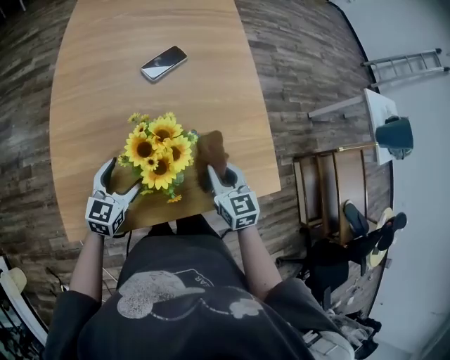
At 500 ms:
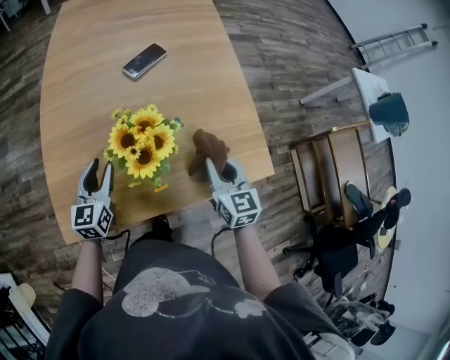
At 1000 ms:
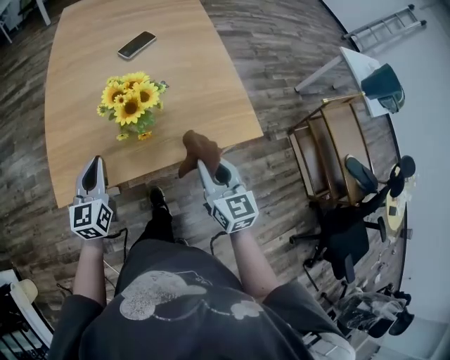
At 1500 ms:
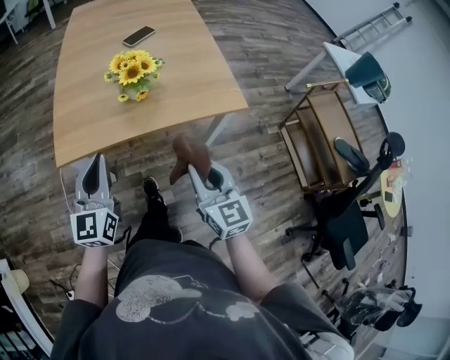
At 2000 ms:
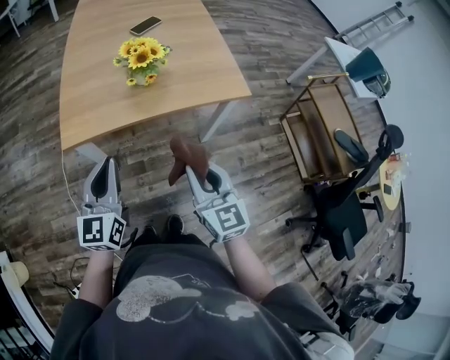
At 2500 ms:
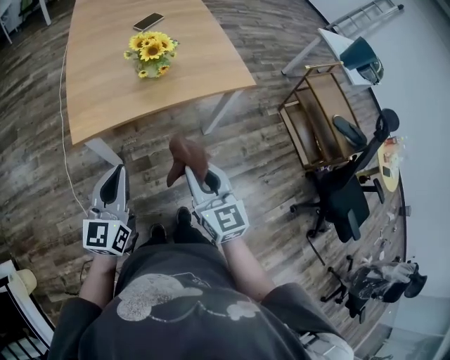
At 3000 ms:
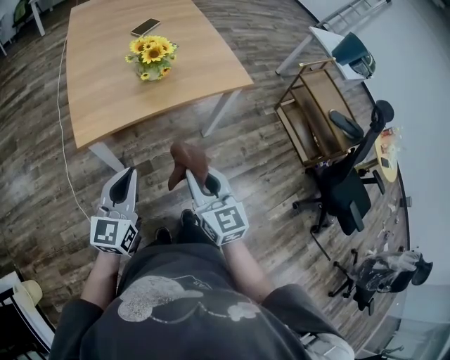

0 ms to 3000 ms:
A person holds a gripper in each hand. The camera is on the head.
0 ms to 1500 ms: The right gripper is displaced backward by roughly 30 cm; the left gripper goes approximately 35 cm backward and upward, swivels approximately 30 degrees, and closes its fingers.
1500 ms to 3000 ms: The right gripper travels to the left and backward by about 15 cm; the left gripper shifts about 10 cm backward, and changes its angle by about 20 degrees.

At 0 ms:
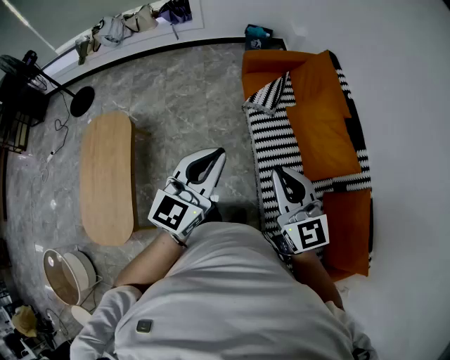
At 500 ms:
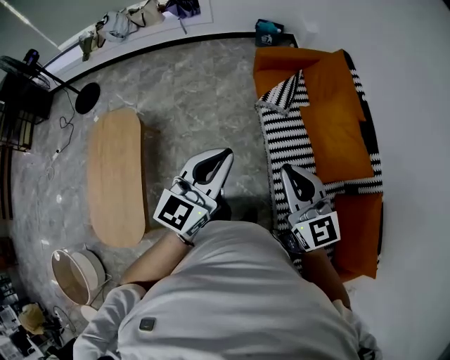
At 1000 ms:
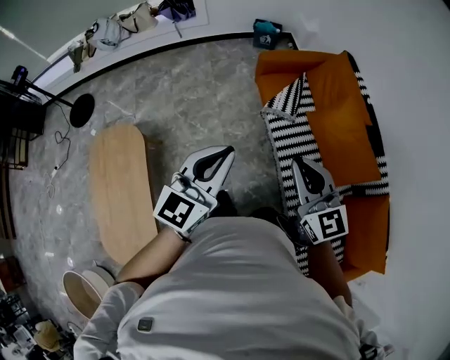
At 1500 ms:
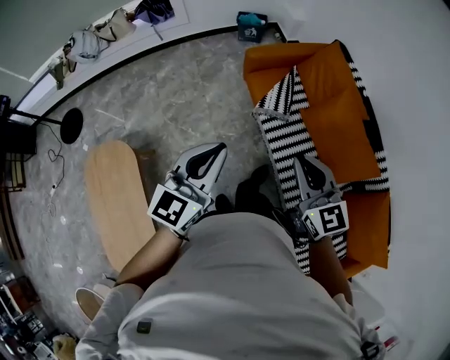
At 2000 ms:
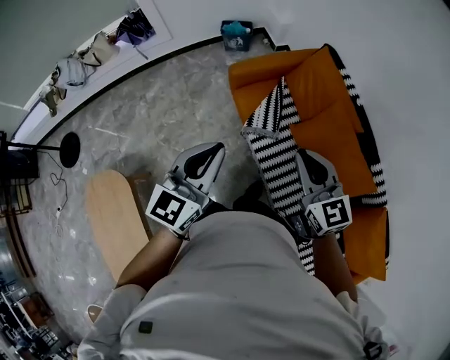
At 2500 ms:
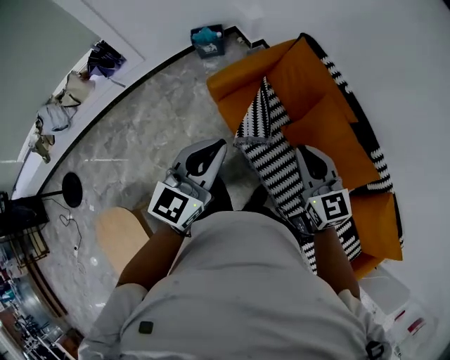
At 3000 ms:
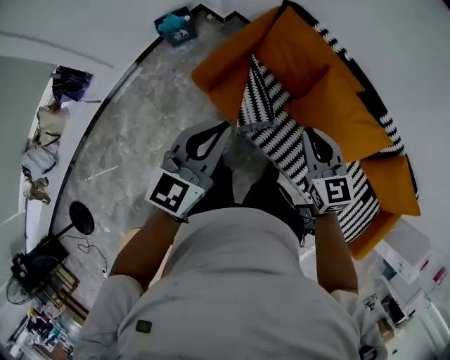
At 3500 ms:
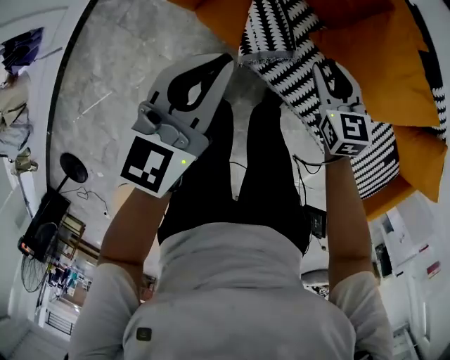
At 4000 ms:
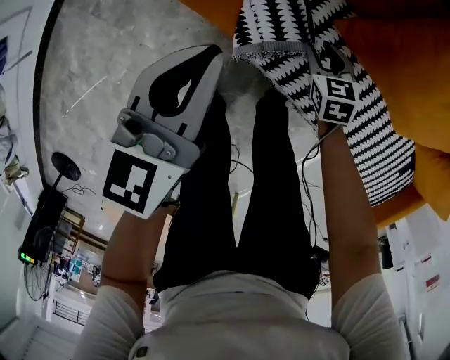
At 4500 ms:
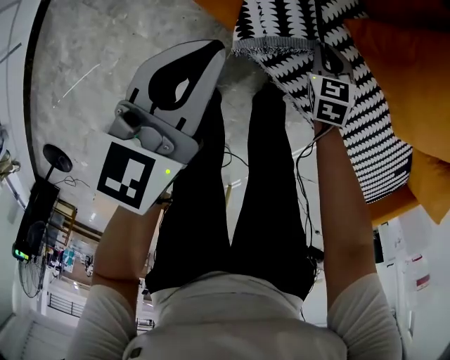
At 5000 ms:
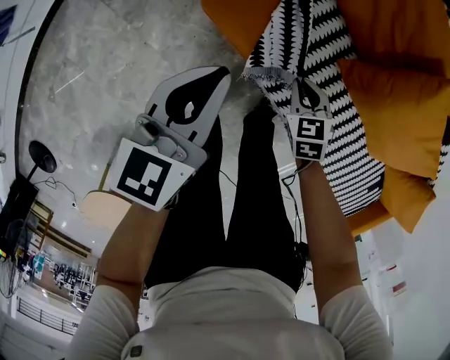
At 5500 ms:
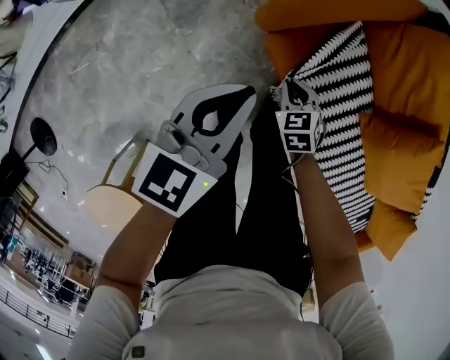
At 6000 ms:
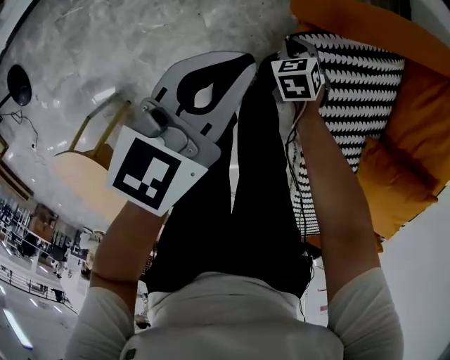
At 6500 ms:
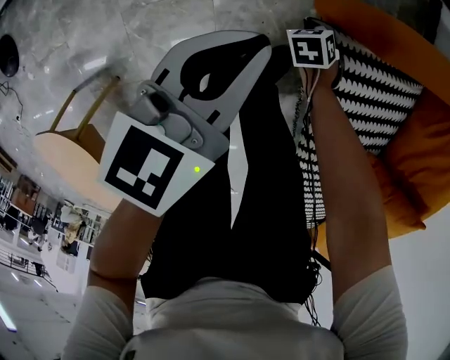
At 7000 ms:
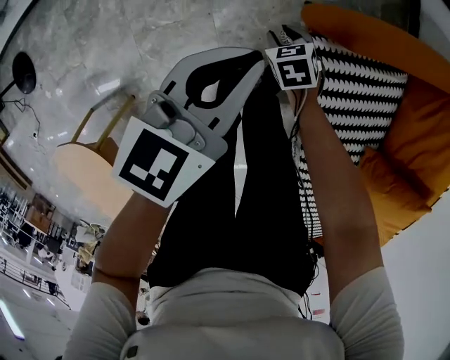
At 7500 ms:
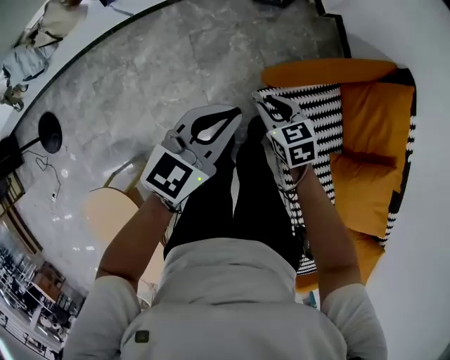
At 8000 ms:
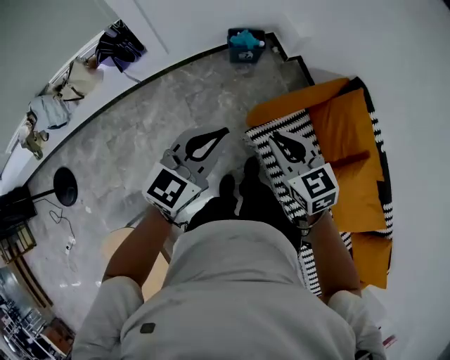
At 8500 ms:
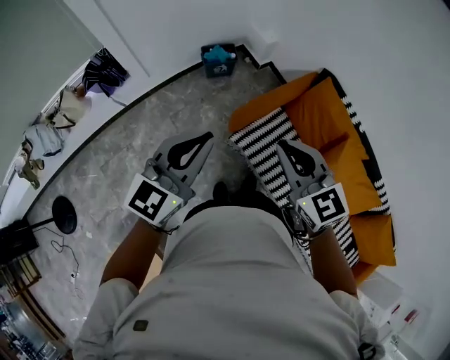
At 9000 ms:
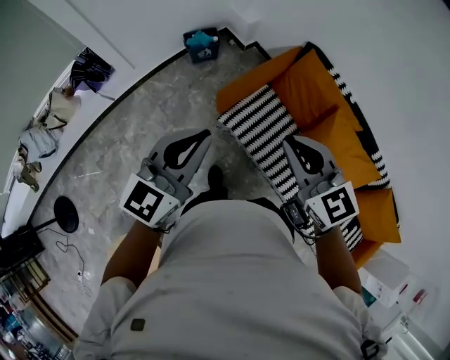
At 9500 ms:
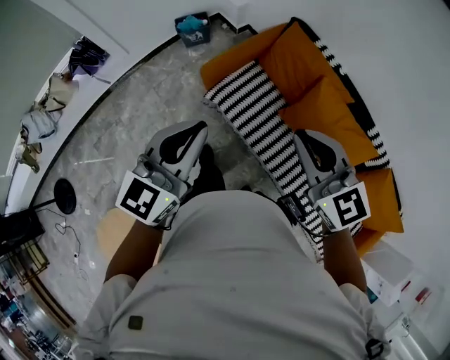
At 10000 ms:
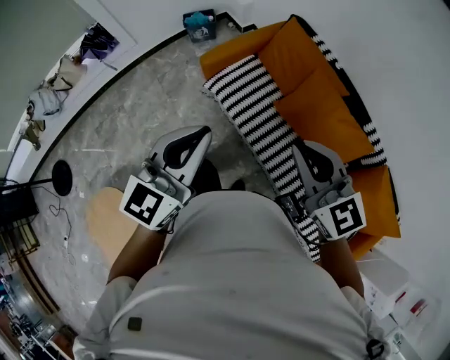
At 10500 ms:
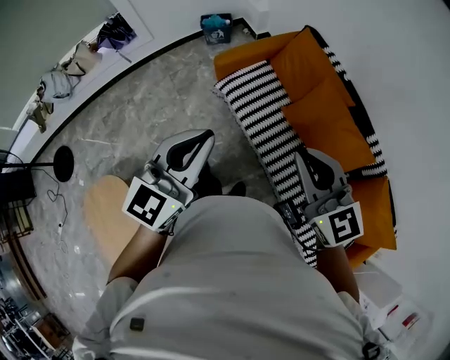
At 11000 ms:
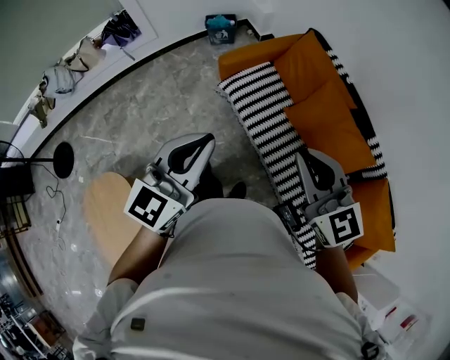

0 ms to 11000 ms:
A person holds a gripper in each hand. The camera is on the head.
0 ms to 2000 ms: The grippers both shift forward by roughly 35 cm.
2000 ms to 3500 ms: The right gripper travels downward by some 40 cm, rotates approximately 50 degrees, and opens up; the left gripper ends up about 40 cm from where it was, and rotates roughly 30 degrees.
3500 ms to 5500 ms: Both grippers move to the left and downward, roughly 30 cm. The right gripper turns by approximately 40 degrees, and closes its fingers. Meanwhile the left gripper swivels approximately 20 degrees.
5500 ms to 7500 ms: The grippers both shift upward by roughly 20 cm. The right gripper changes its angle by some 20 degrees.
7500 ms to 9000 ms: The grippers both shift upward and backward by roughly 40 cm. The left gripper rotates some 30 degrees, while the right gripper tips its fingers upward by approximately 30 degrees, and closes.
9000 ms to 11000 ms: The grippers both shift backward and to the right by approximately 35 cm.

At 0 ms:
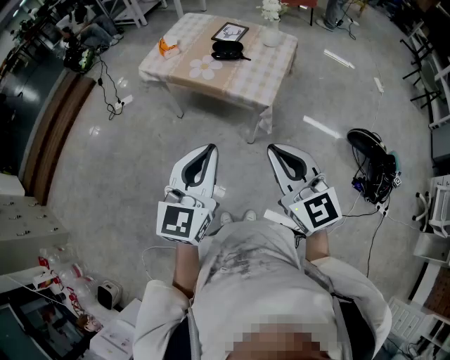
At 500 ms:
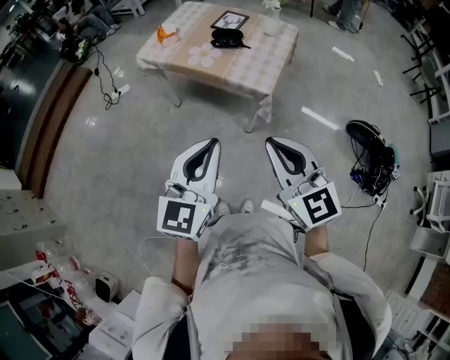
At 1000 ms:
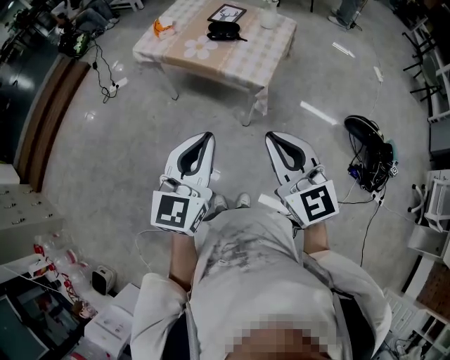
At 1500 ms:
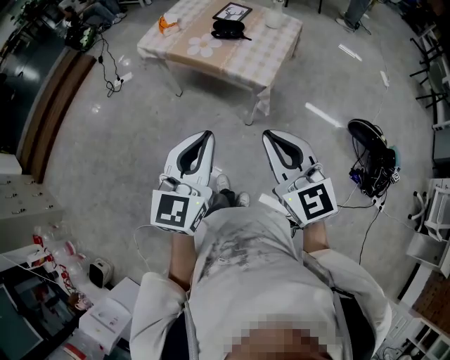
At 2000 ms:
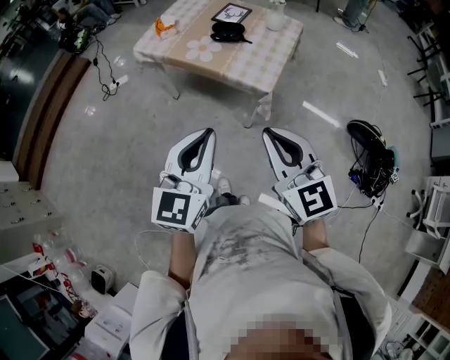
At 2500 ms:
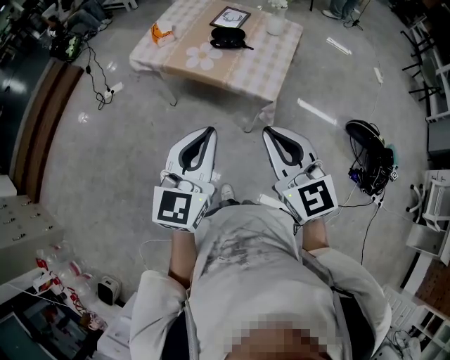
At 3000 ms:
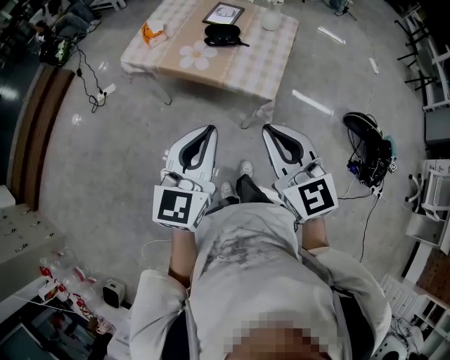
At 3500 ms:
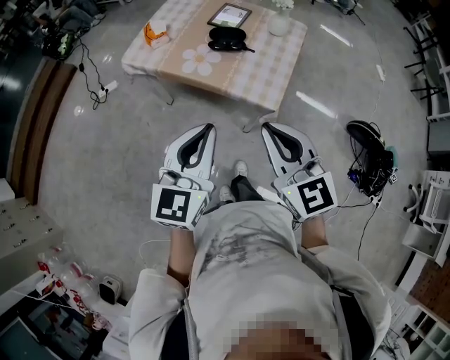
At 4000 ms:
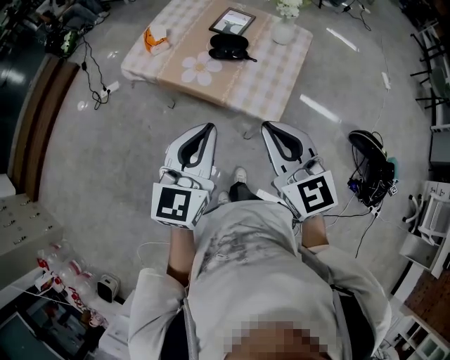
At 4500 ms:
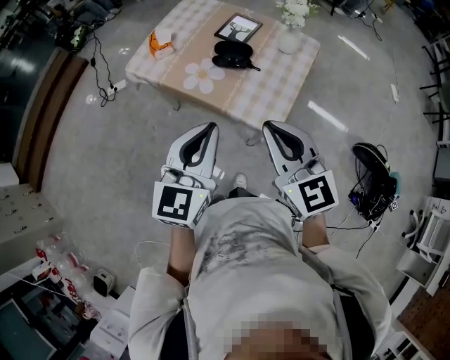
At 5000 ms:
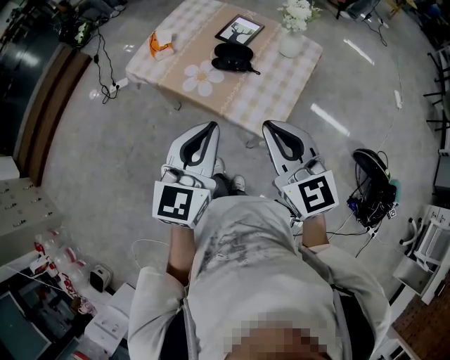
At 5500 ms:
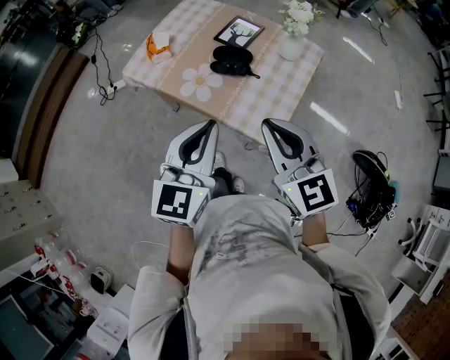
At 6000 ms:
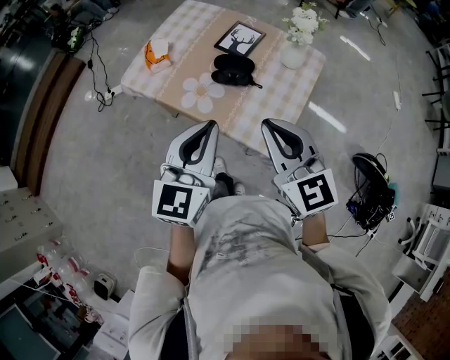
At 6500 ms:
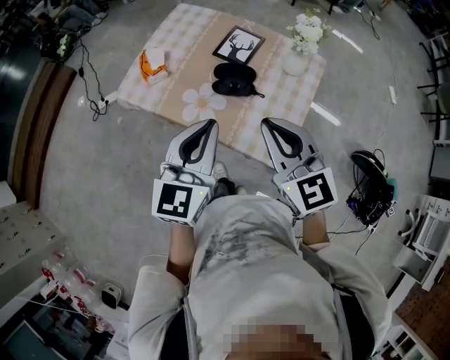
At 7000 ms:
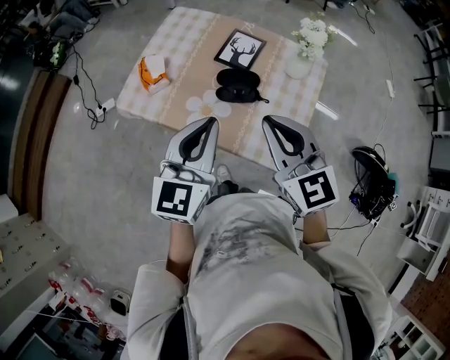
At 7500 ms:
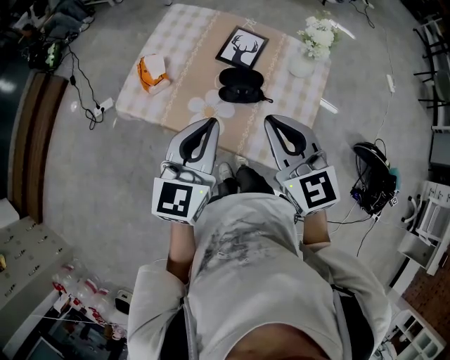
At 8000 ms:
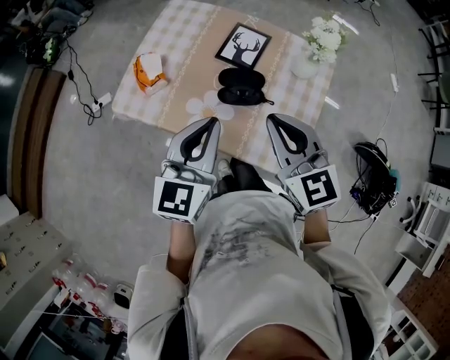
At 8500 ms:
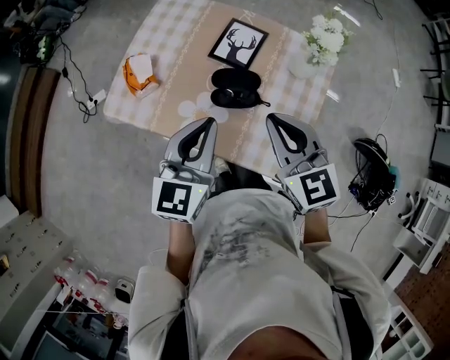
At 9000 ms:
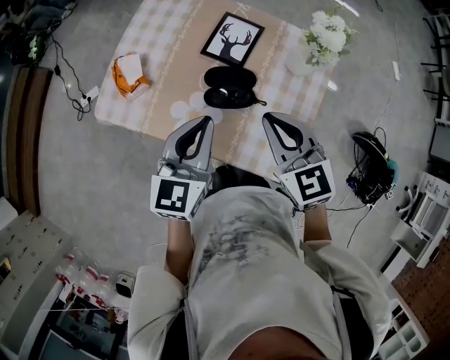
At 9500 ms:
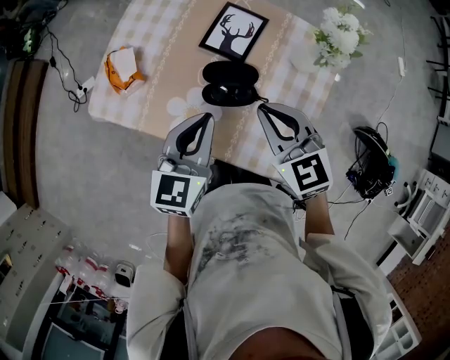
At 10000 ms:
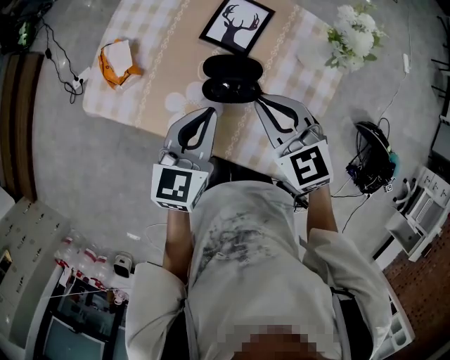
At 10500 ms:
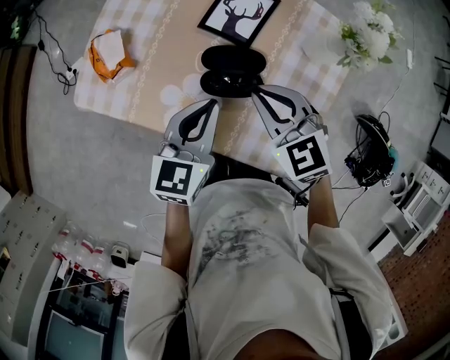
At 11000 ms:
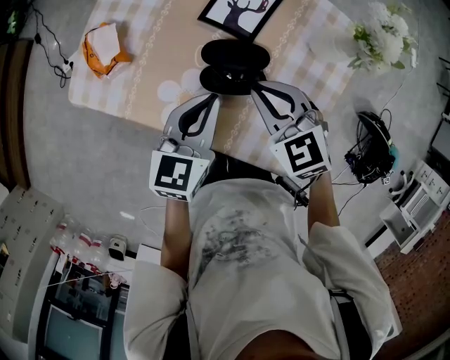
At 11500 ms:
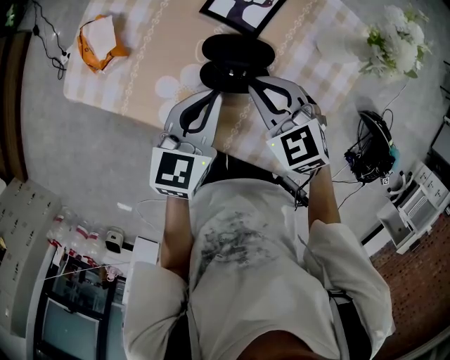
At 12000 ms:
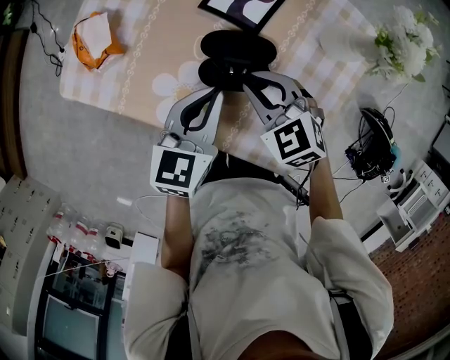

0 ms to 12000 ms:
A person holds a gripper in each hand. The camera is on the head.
0 ms to 2000 ms: There are only small adjustments of the grippers.
2000 ms to 4000 ms: Both grippers travel together forward, approximately 20 cm.
4000 ms to 6000 ms: The two grippers go some 15 cm forward.
6000 ms to 8000 ms: Both grippers travel together forward, roughly 15 cm.
8000 ms to 10000 ms: Both grippers travel together downward and forward, about 15 cm.
10000 ms to 12000 ms: Both grippers move downward, about 10 cm.

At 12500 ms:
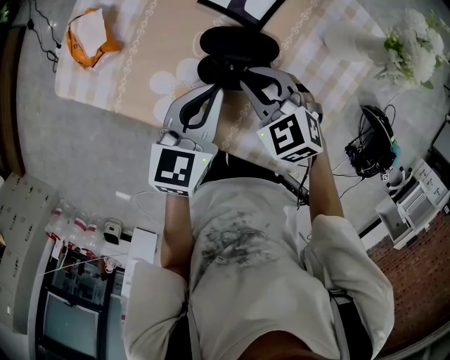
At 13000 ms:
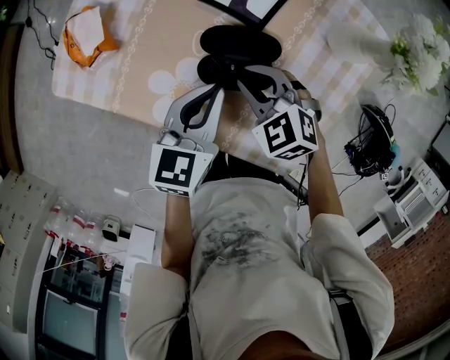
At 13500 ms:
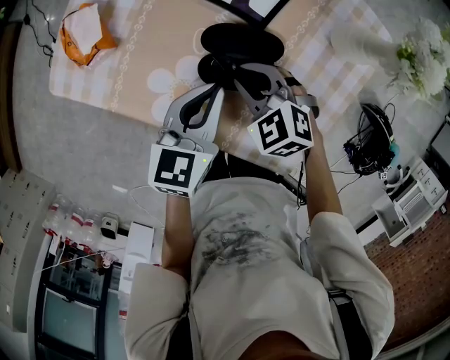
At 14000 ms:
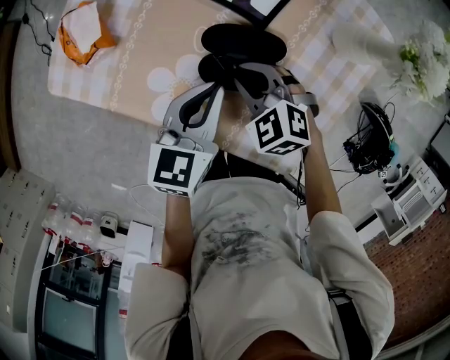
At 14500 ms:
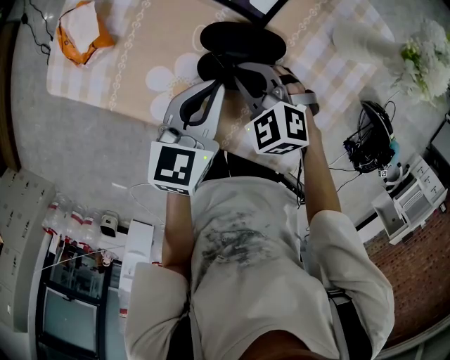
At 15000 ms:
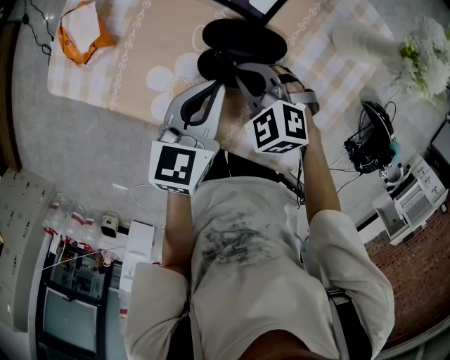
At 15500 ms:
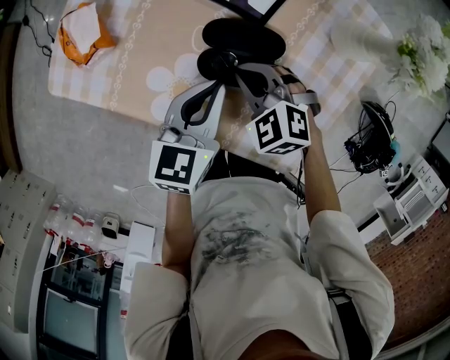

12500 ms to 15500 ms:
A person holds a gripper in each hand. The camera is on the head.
12500 ms to 14000 ms: The grippers move only a little.
14000 ms to 15500 ms: Both grippers stay put.
